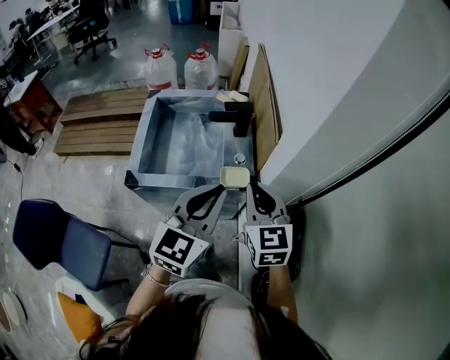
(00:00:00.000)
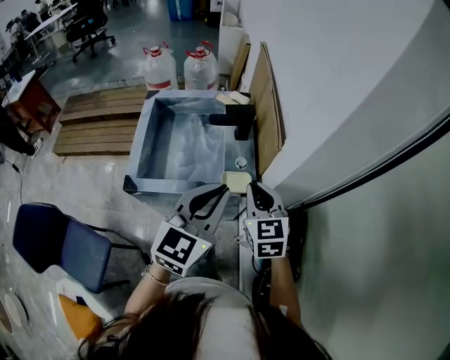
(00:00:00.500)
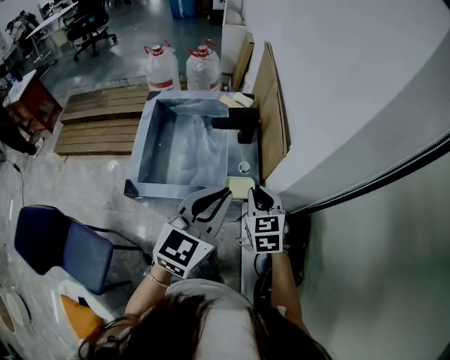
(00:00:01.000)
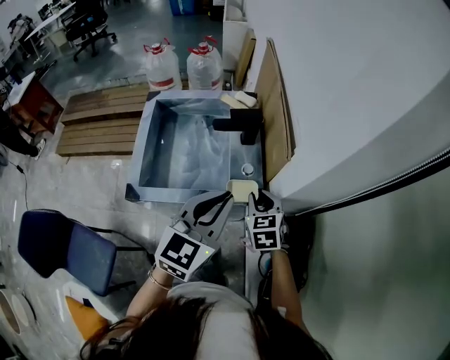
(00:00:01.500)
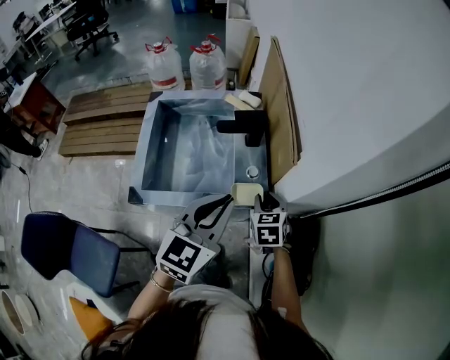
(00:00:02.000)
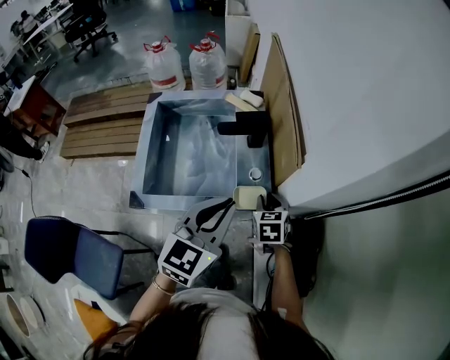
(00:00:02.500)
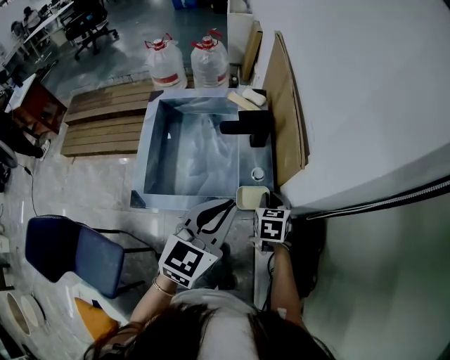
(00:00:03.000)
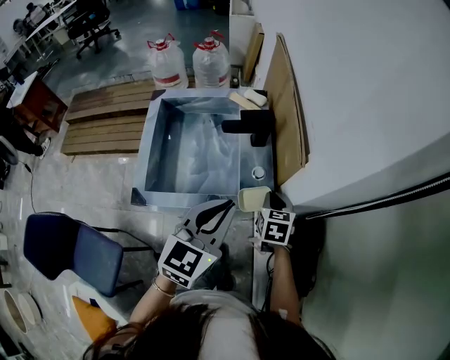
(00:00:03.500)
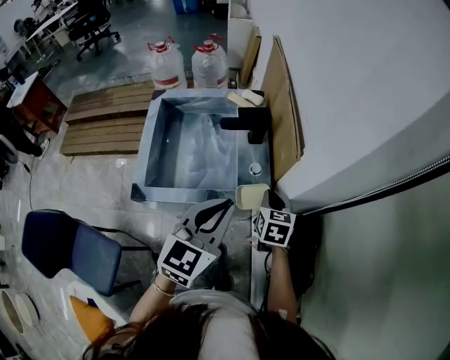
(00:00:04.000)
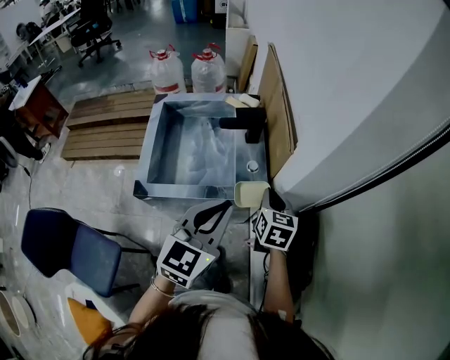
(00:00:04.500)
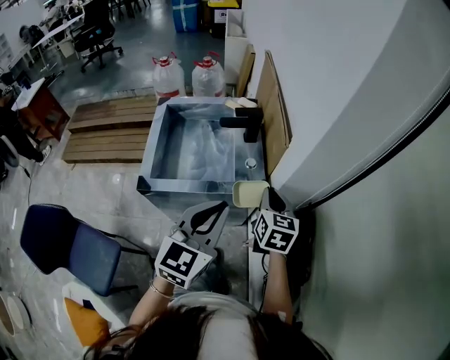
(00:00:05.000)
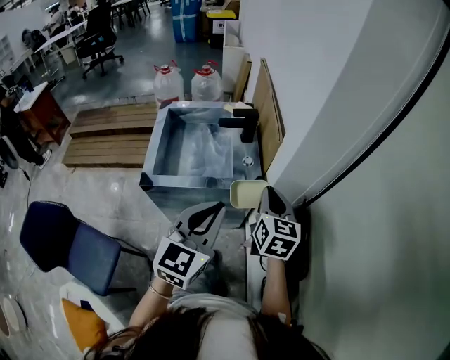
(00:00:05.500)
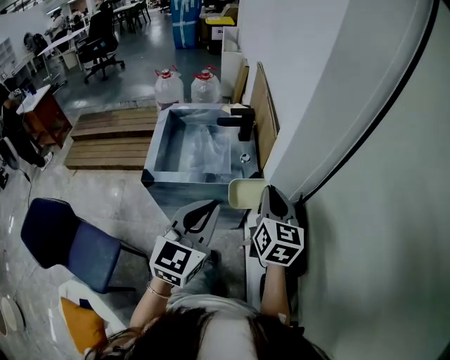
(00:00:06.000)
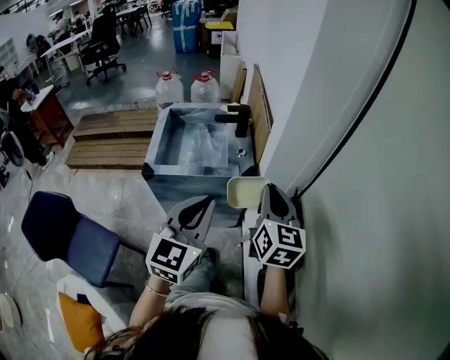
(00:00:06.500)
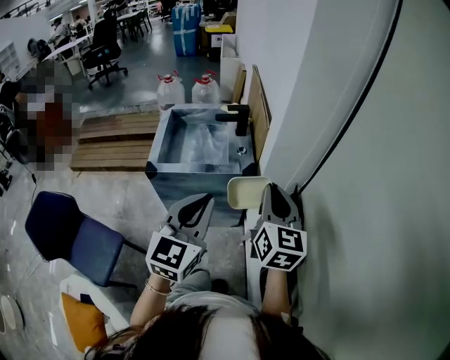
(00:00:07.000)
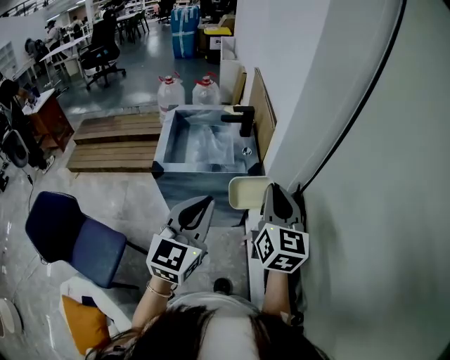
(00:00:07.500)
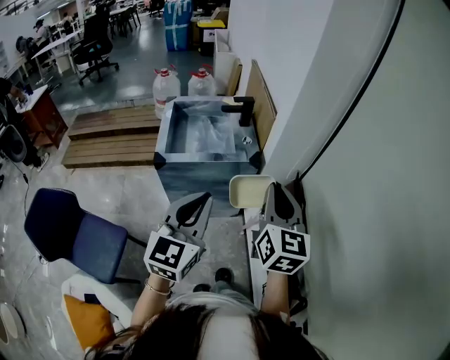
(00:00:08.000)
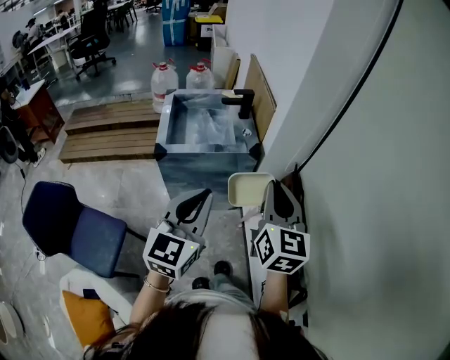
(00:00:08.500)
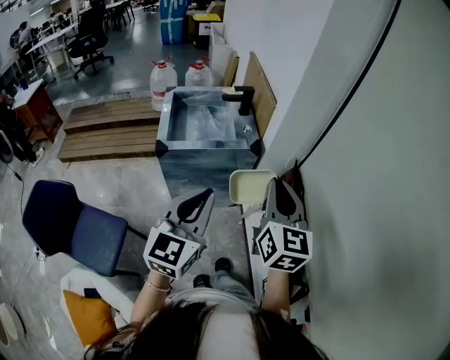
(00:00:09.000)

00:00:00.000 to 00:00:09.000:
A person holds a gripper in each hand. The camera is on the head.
00:00:00.000 to 00:00:02.000: The right gripper travels downward and forward by roughly 20 cm, and rotates approximately 30 degrees; the left gripper moves forward, about 5 cm.
00:00:02.000 to 00:00:04.500: The left gripper moves backward, some 5 cm. Meanwhile the right gripper travels upward by some 5 cm, and rotates about 20 degrees.
00:00:04.500 to 00:00:07.000: The right gripper moves backward and upward, approximately 30 cm, and rotates approximately 30 degrees; the left gripper heads backward, covering roughly 20 cm.
00:00:07.000 to 00:00:09.000: The grippers both shift backward and to the left by approximately 15 cm.

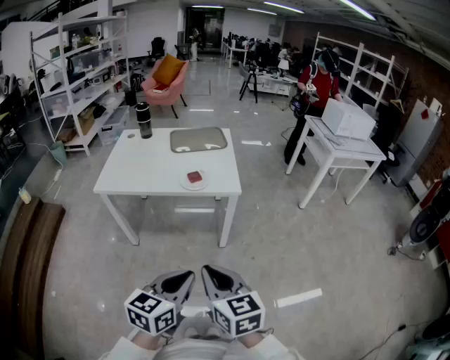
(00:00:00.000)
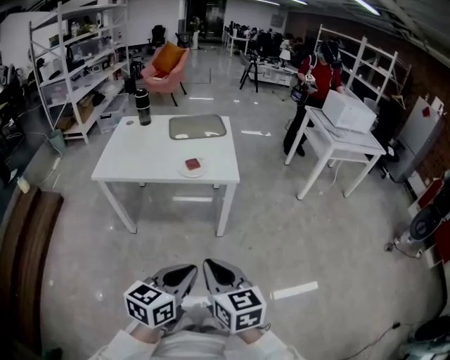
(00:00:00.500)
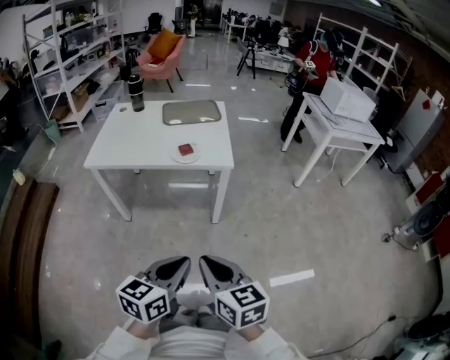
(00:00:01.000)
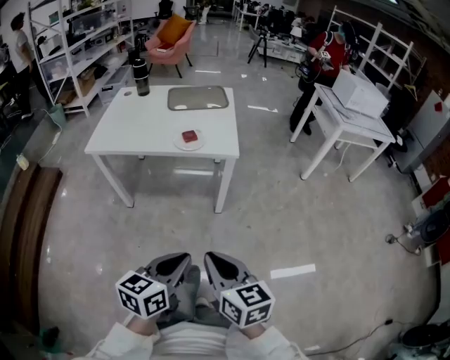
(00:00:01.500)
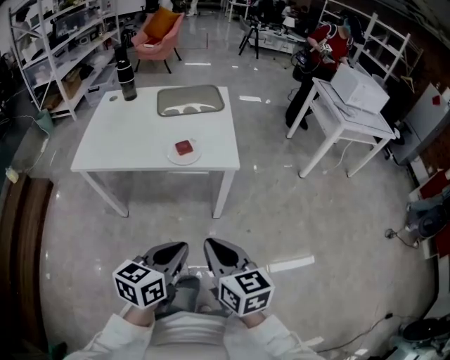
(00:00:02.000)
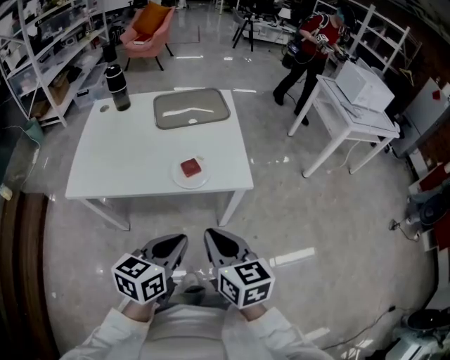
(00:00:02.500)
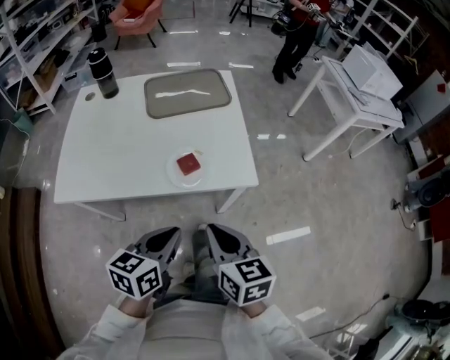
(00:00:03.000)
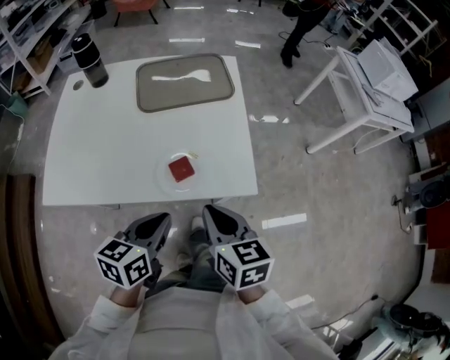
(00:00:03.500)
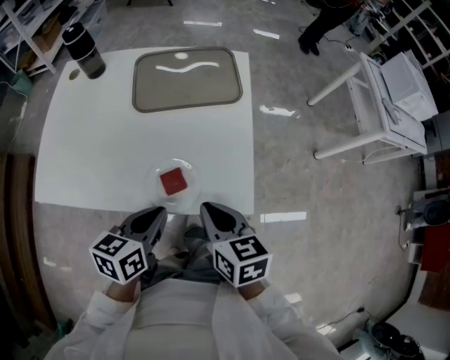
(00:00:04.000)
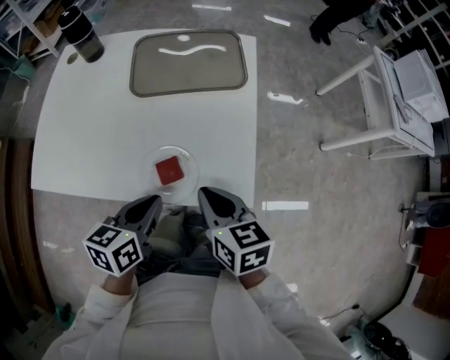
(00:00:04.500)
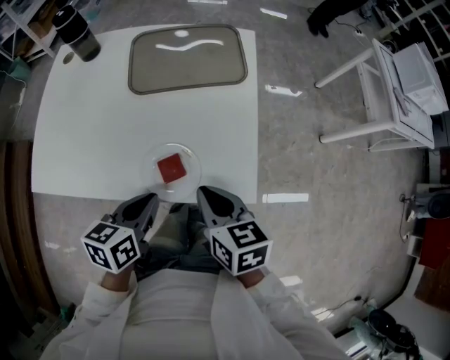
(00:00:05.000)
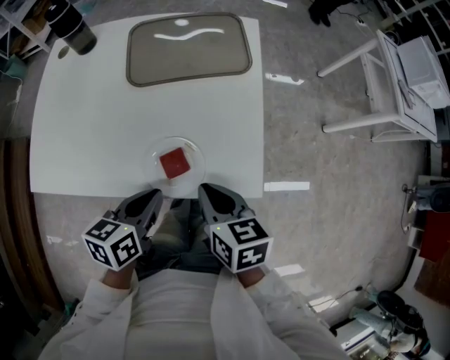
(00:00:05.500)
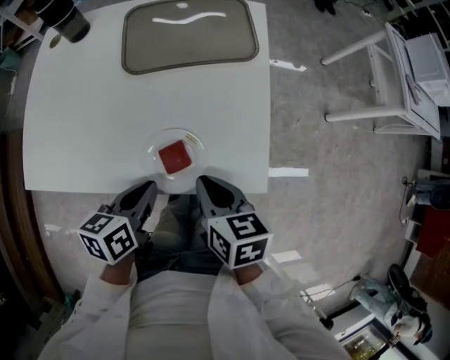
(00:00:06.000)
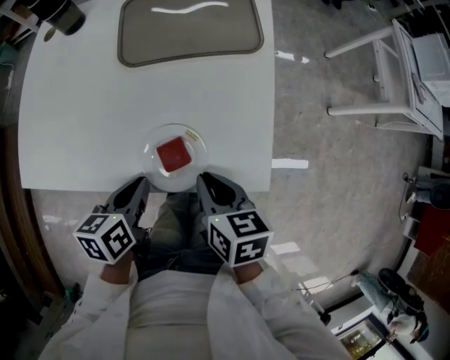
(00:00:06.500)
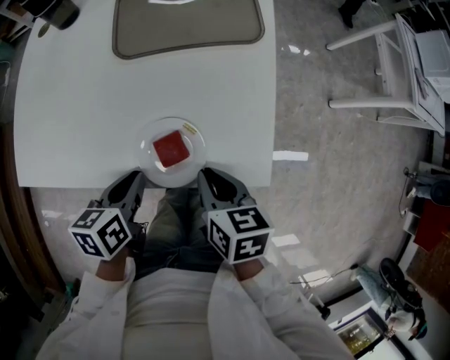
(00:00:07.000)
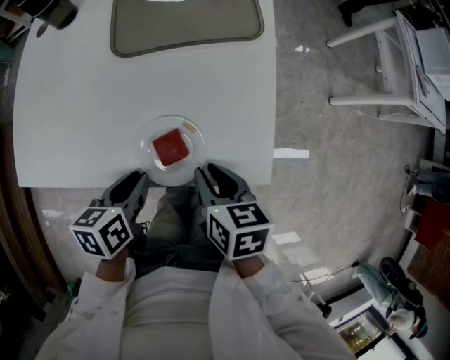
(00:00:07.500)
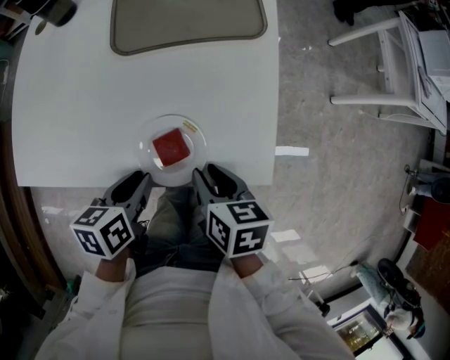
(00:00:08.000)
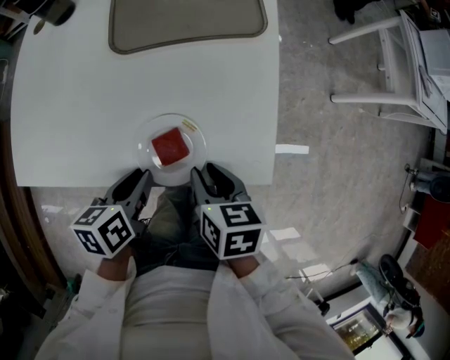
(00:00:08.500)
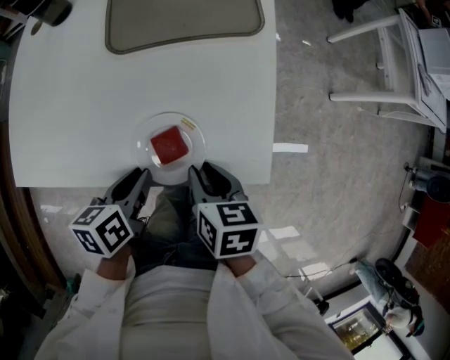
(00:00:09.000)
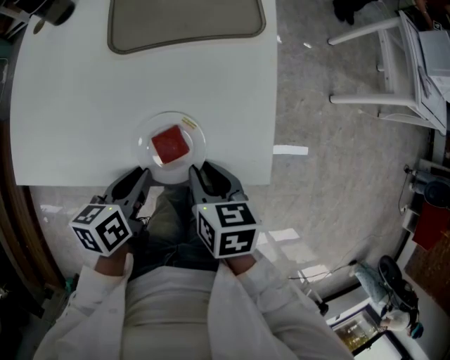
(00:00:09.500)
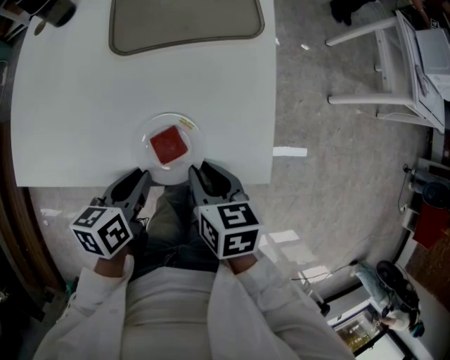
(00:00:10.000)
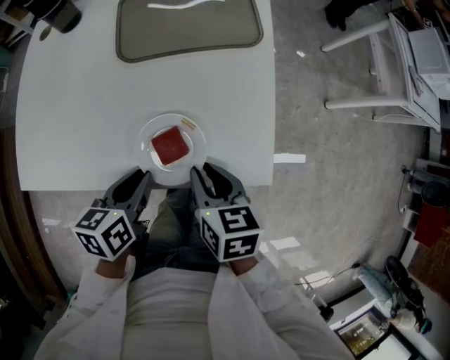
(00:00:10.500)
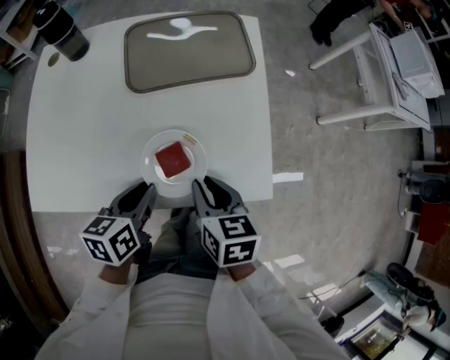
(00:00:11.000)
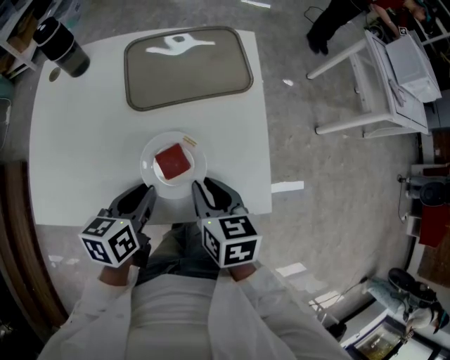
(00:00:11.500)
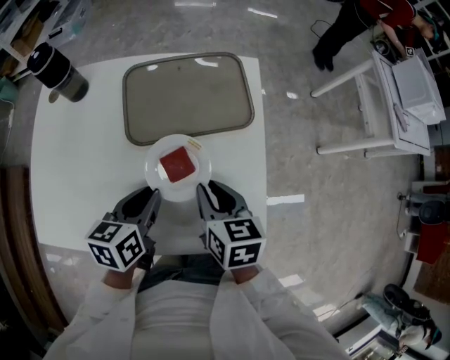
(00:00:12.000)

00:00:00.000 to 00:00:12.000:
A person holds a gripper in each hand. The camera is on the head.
00:00:00.000 to 00:00:02.000: Both grippers travel together forward, approximately 15 cm.
00:00:02.000 to 00:00:04.000: The two grippers travel together, forward, approximately 40 cm.
00:00:04.000 to 00:00:06.000: The two grippers go about 5 cm downward.
00:00:06.000 to 00:00:08.000: The right gripper opens up.
00:00:08.000 to 00:00:10.000: The grippers move only a little.
00:00:10.000 to 00:00:12.000: The grippers both shift forward and upward by roughly 15 cm.

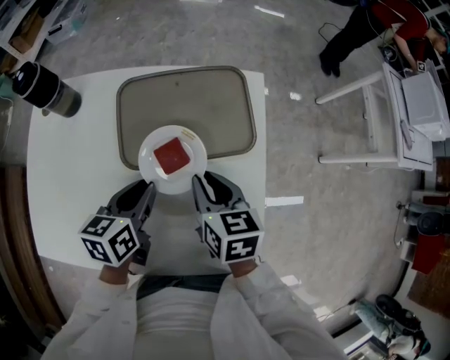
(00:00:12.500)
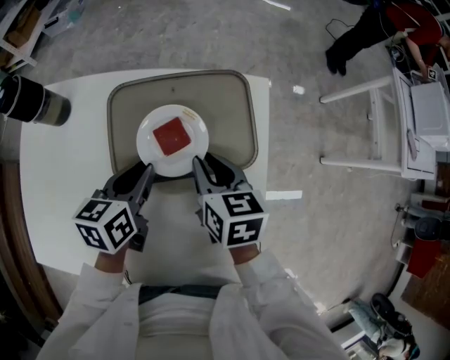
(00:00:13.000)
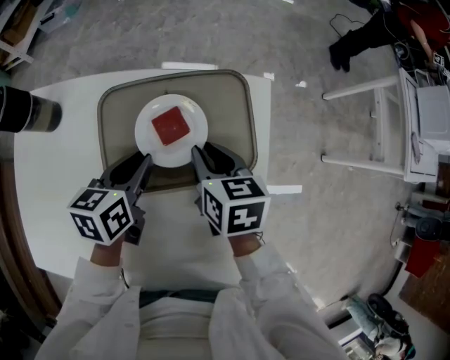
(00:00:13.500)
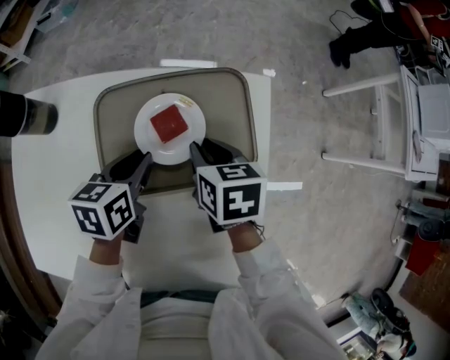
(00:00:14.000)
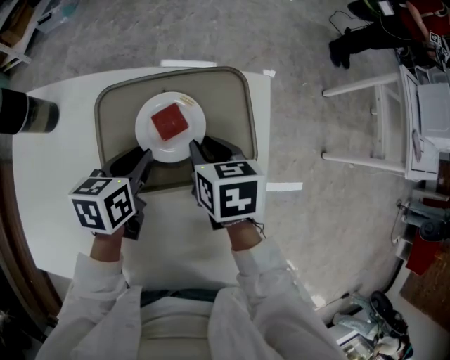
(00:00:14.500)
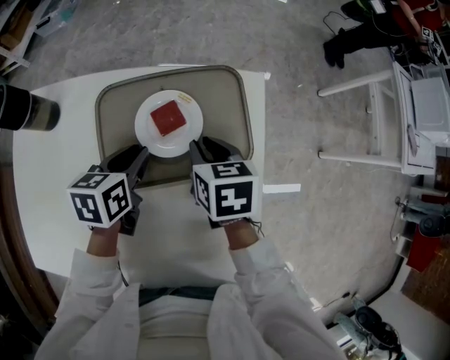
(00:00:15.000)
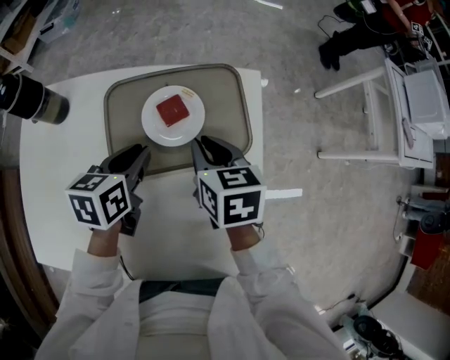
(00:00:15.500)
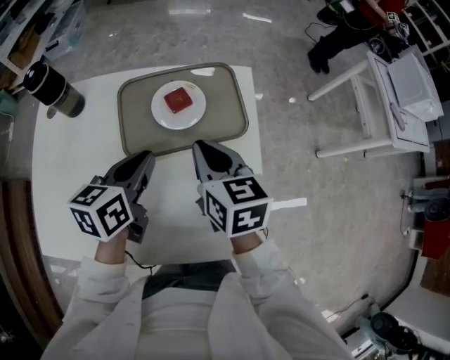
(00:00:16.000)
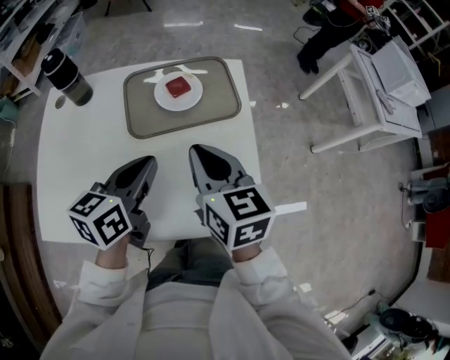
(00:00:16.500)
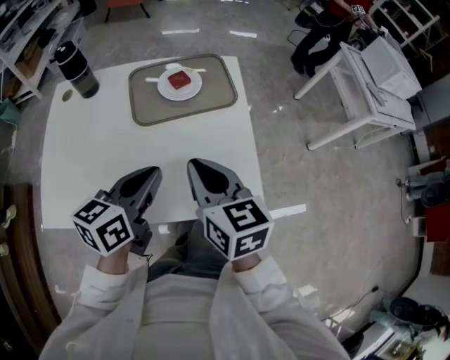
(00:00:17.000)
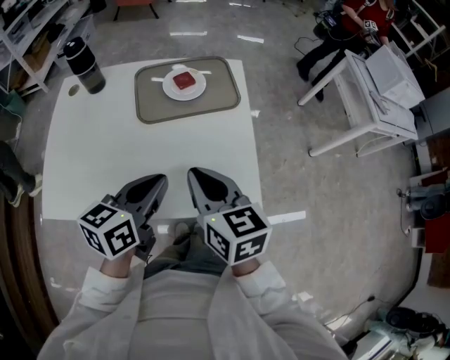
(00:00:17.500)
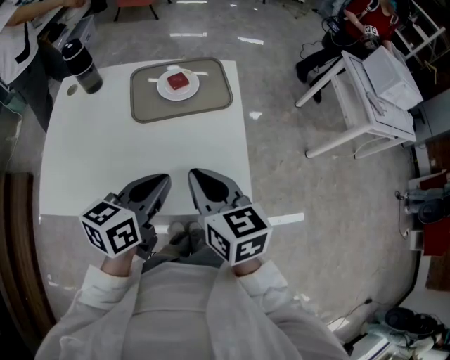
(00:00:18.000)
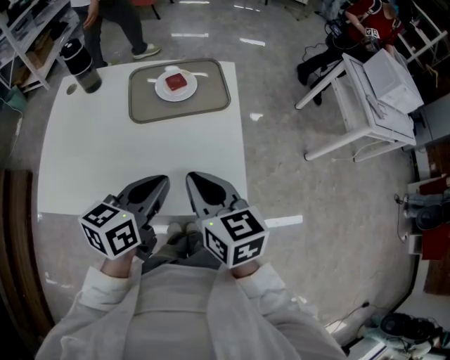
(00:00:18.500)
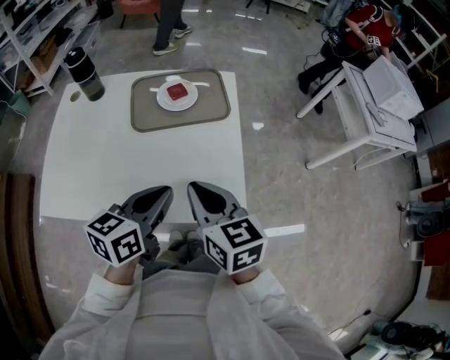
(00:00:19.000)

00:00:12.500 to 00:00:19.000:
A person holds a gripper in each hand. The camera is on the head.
00:00:12.500 to 00:00:14.500: The left gripper heads forward, covering approximately 15 cm, while the right gripper is displaced forward and downward by approximately 15 cm.
00:00:14.500 to 00:00:17.000: Both grippers move backward and upward, roughly 35 cm. The right gripper swivels roughly 30 degrees; the left gripper swivels about 30 degrees.
00:00:17.000 to 00:00:19.000: The right gripper changes place by approximately 5 cm; the left gripper heads to the right, covering roughly 5 cm.
